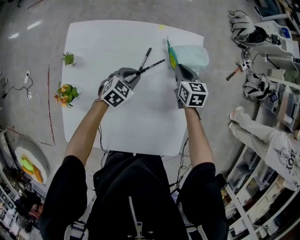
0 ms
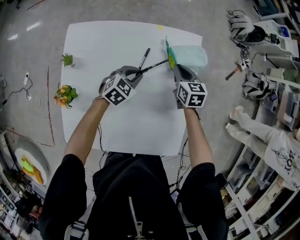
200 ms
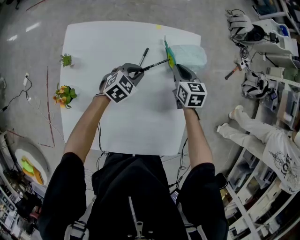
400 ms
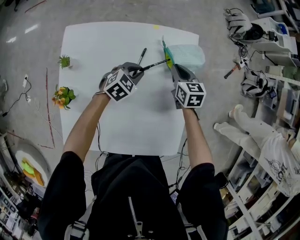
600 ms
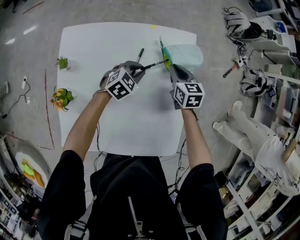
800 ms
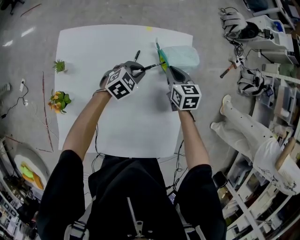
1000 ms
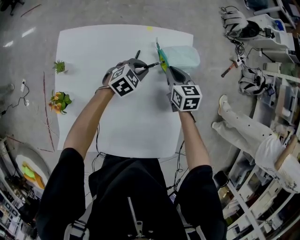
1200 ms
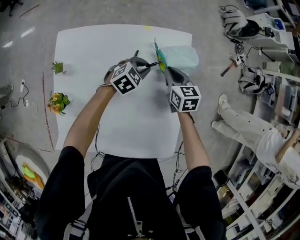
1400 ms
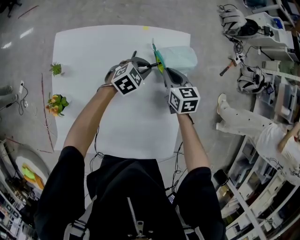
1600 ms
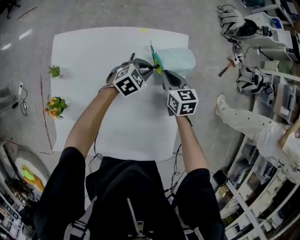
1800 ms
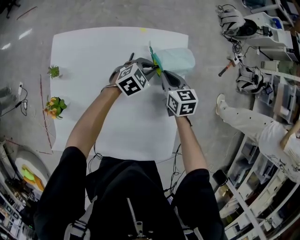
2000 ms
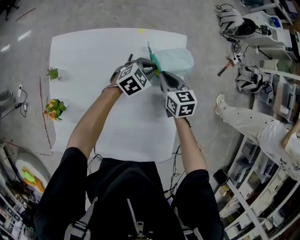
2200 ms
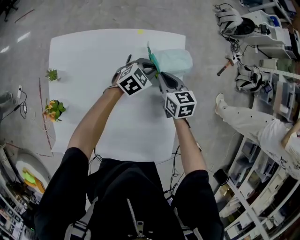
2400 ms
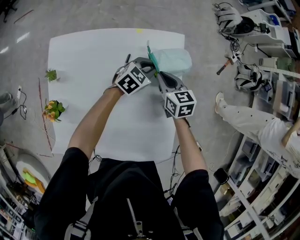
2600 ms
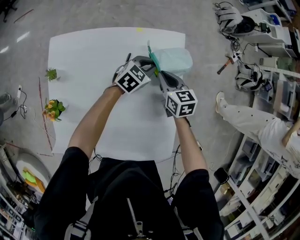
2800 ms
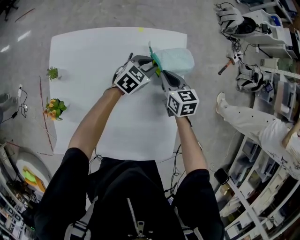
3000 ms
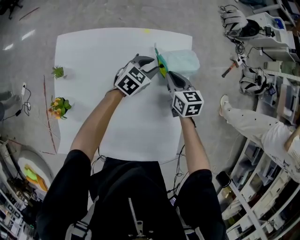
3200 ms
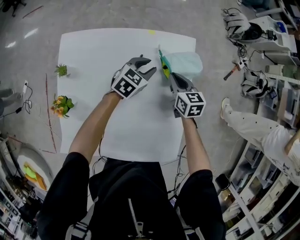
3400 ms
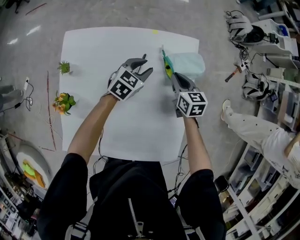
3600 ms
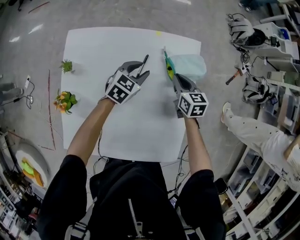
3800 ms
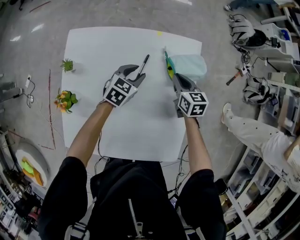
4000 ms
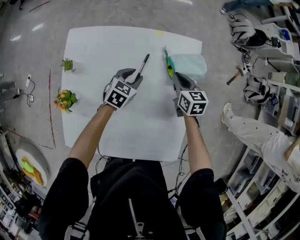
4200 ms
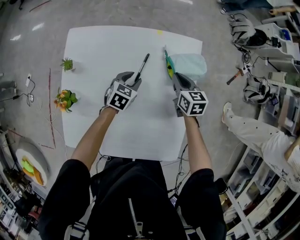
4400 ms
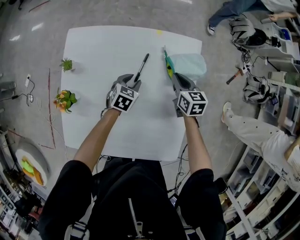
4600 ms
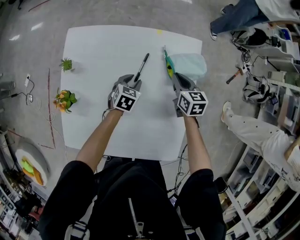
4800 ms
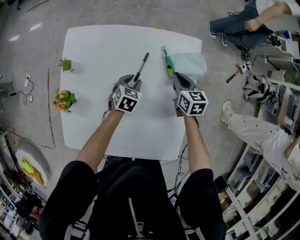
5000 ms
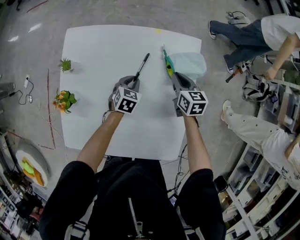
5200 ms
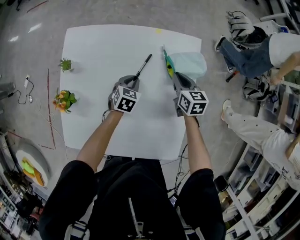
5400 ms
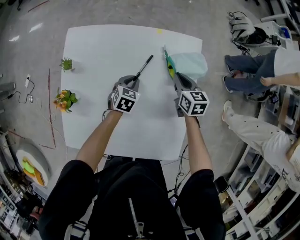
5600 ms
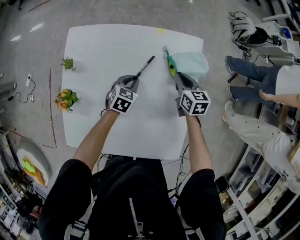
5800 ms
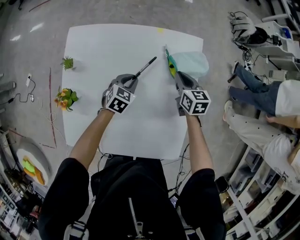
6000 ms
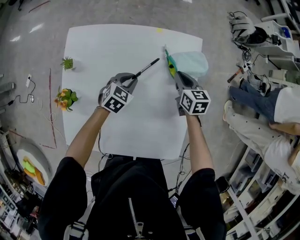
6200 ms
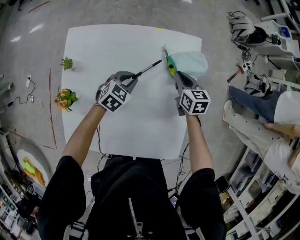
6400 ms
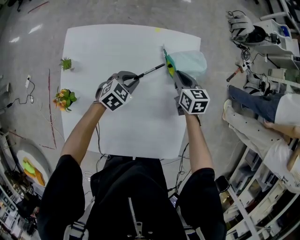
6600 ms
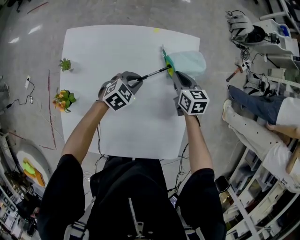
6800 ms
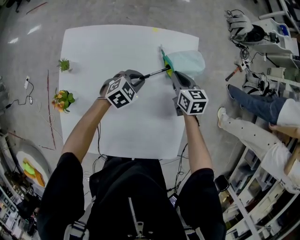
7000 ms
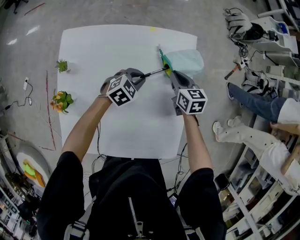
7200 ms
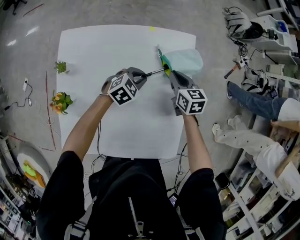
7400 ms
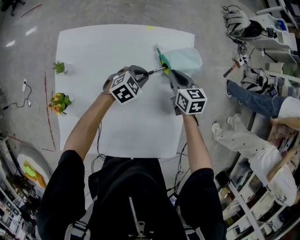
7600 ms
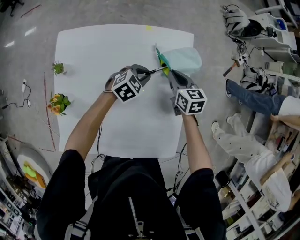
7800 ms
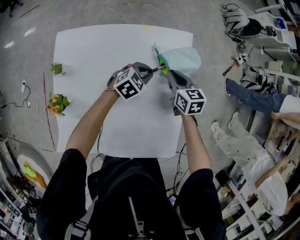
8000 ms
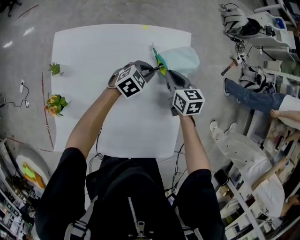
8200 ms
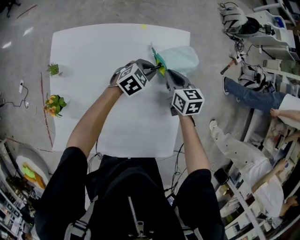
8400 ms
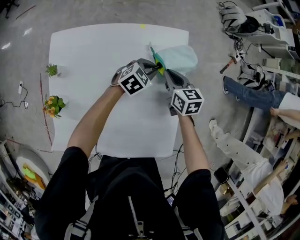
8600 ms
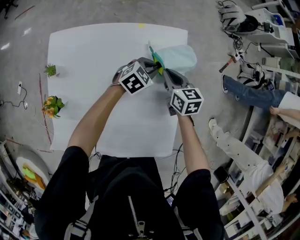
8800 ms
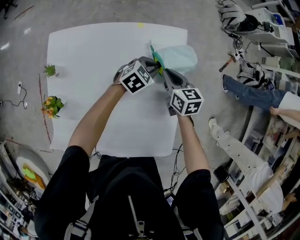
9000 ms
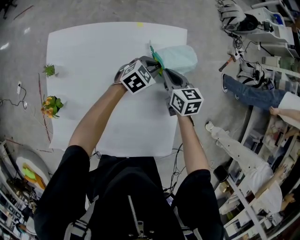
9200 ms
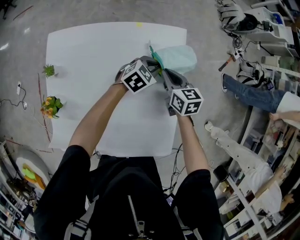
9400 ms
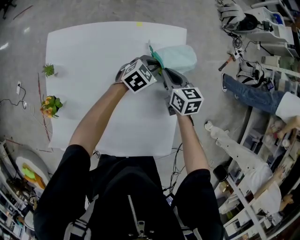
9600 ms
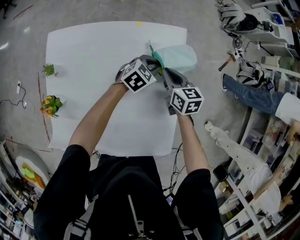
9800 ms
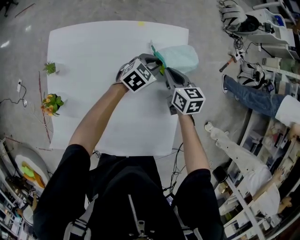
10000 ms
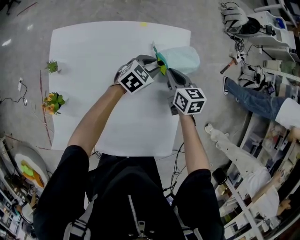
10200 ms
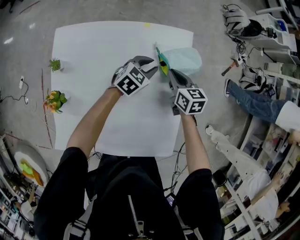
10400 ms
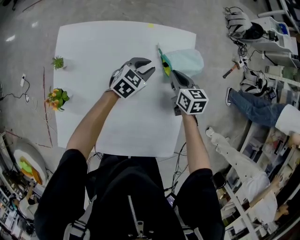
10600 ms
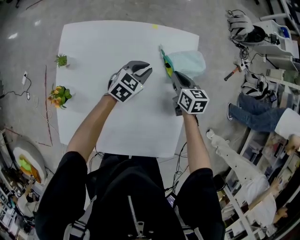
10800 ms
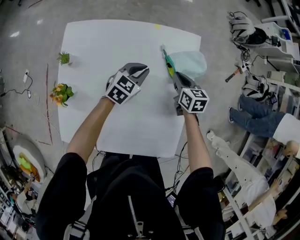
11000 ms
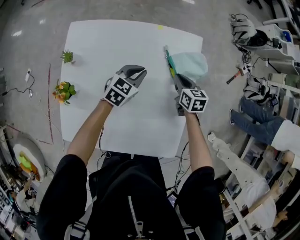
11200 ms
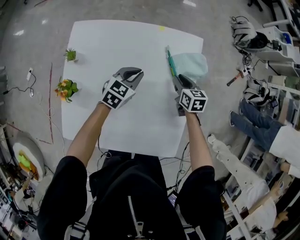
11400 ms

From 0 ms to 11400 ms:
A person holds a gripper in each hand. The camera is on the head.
From 0 ms to 1400 ms: The left gripper heads to the right and forward, covering roughly 10 cm.
From 1400 ms to 2800 ms: The left gripper ends up about 5 cm from where it was.
From 2800 ms to 4200 ms: The left gripper moves to the left and backward, approximately 15 cm, and rotates about 20 degrees.
From 4200 ms to 5600 ms: The left gripper ends up approximately 5 cm from where it was.
From 5600 ms to 7200 ms: The left gripper goes roughly 5 cm to the right, and swivels about 30 degrees.
From 7200 ms to 8600 ms: The left gripper goes some 10 cm to the right and forward.
From 8600 ms to 10000 ms: The grippers make only small movements.
From 10000 ms to 11400 ms: The left gripper travels to the left and backward by approximately 15 cm.

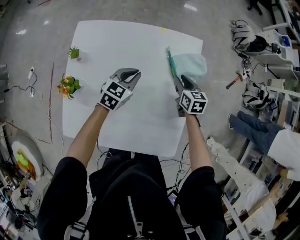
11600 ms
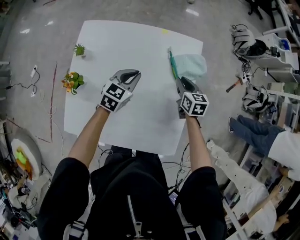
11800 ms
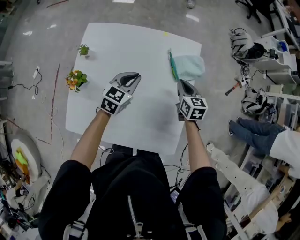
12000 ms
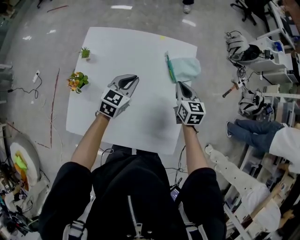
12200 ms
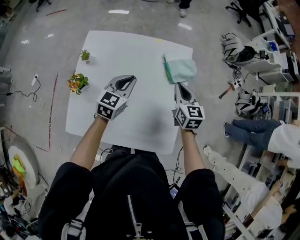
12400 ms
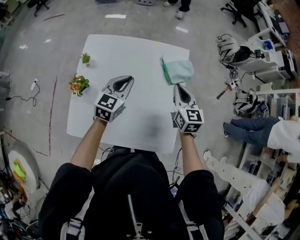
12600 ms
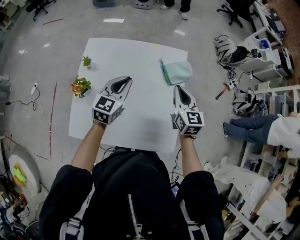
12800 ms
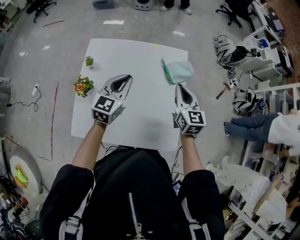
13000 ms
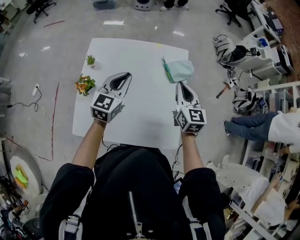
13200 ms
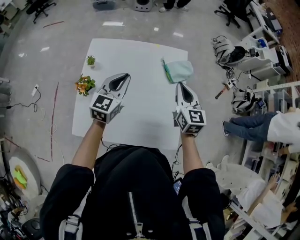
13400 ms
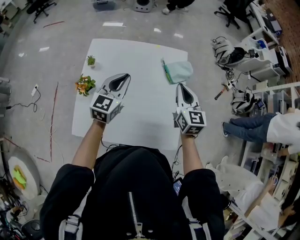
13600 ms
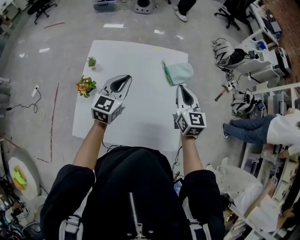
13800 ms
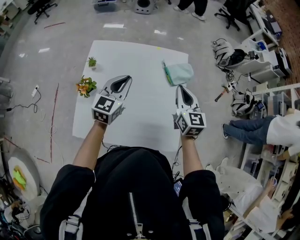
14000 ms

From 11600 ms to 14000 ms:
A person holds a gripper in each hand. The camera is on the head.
From 11600 ms to 12800 ms: The grippers both shift upward and backward by about 20 cm. The right gripper changes its angle by approximately 20 degrees, and closes up. The left gripper rotates approximately 20 degrees.
From 12800 ms to 14000 ms: The grippers make only small movements.

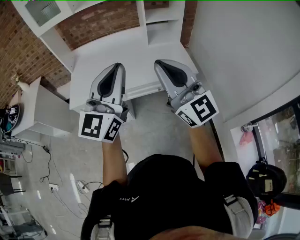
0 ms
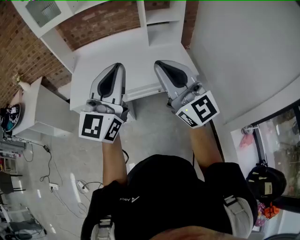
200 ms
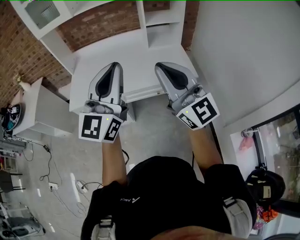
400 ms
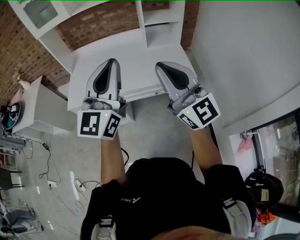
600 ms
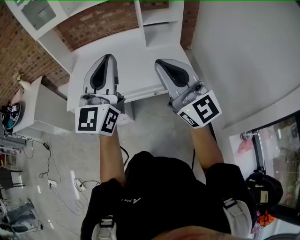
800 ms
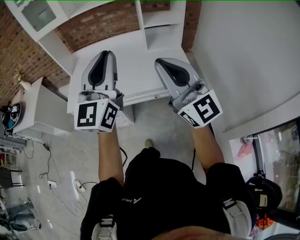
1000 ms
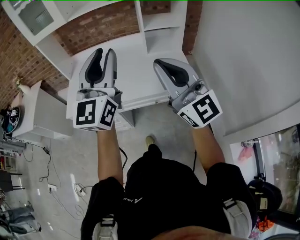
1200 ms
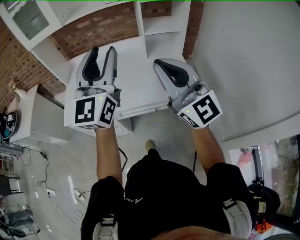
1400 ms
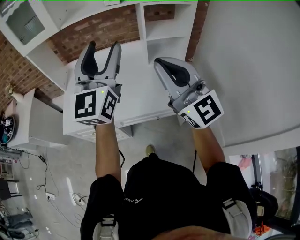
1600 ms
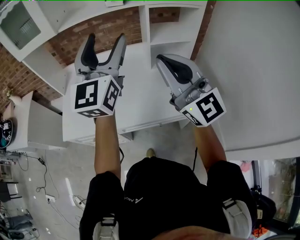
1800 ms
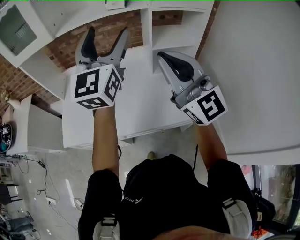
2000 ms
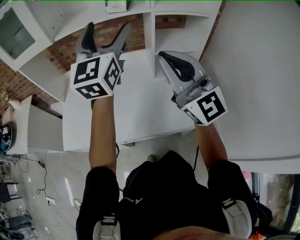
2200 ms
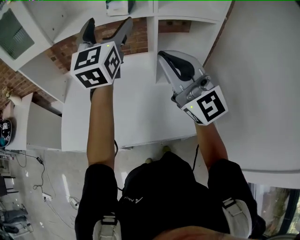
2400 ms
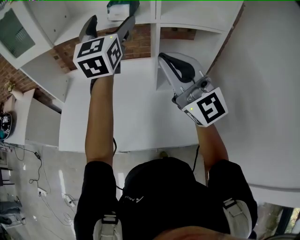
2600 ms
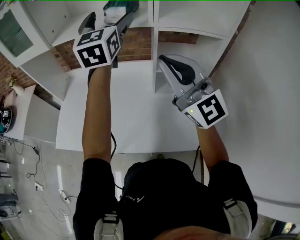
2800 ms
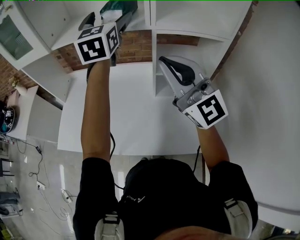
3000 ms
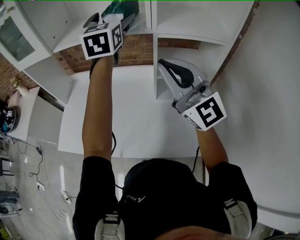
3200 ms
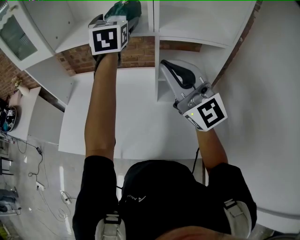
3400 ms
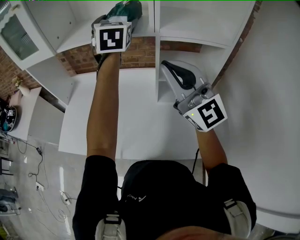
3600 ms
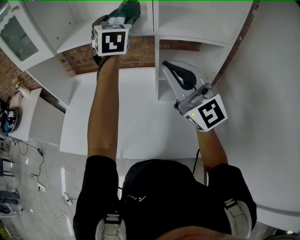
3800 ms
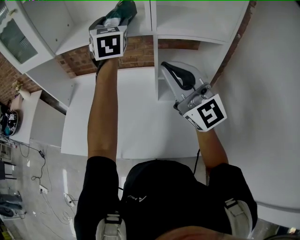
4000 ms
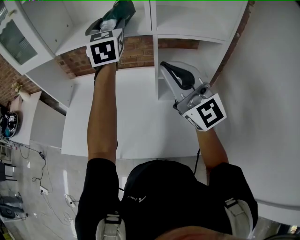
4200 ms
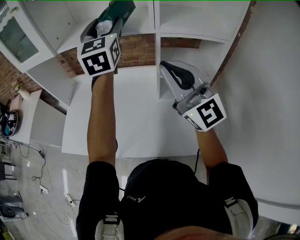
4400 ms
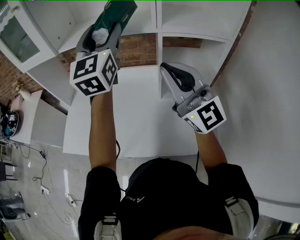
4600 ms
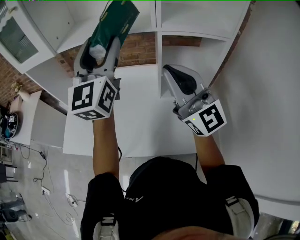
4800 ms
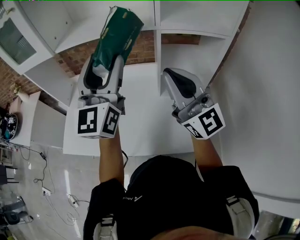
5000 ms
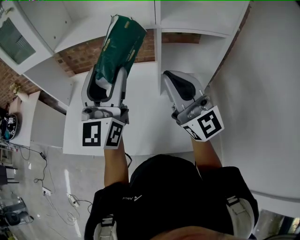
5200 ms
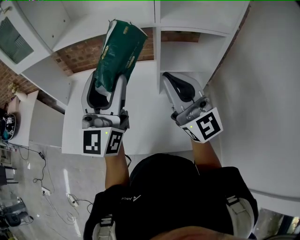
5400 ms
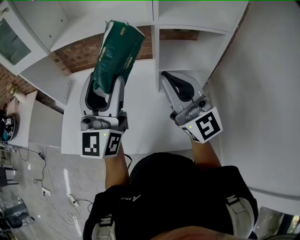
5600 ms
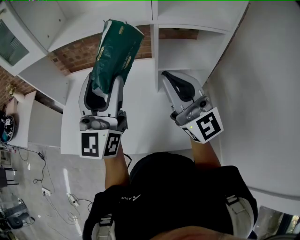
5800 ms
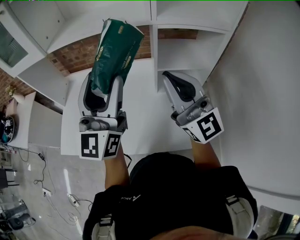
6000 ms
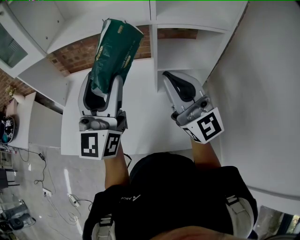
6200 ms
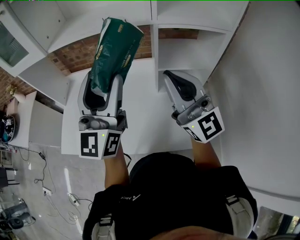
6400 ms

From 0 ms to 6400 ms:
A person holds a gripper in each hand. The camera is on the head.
From 0 ms to 1600 ms: The two grippers go approximately 25 cm forward. The left gripper opens.
From 1600 ms to 3200 ms: The right gripper heads forward and to the right, covering roughly 30 cm. Meanwhile the left gripper shifts some 40 cm forward, rotates approximately 30 degrees, and opens its fingers.
From 3200 ms to 4800 ms: The left gripper moves backward and to the left, about 15 cm, turns by about 20 degrees, and closes.
From 4800 ms to 6400 ms: The left gripper heads backward and downward, covering about 10 cm.

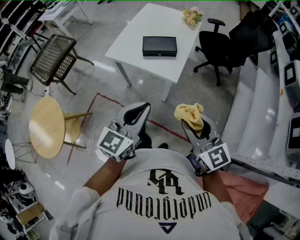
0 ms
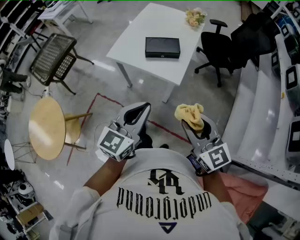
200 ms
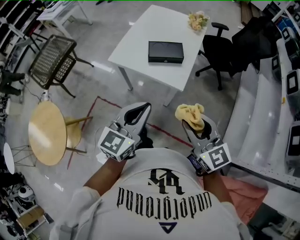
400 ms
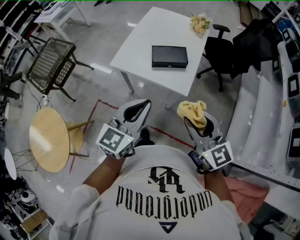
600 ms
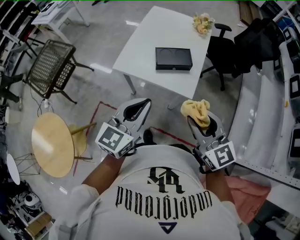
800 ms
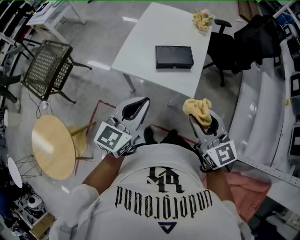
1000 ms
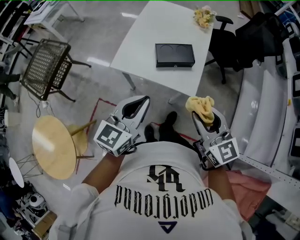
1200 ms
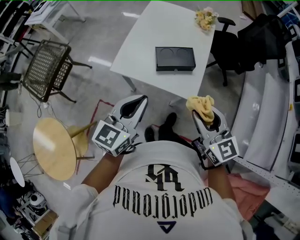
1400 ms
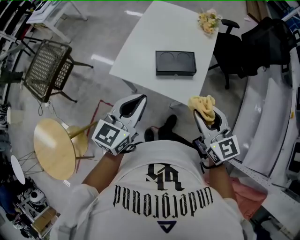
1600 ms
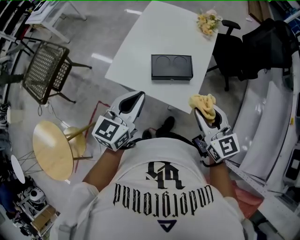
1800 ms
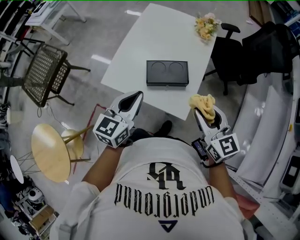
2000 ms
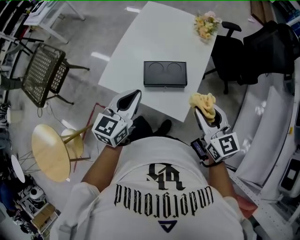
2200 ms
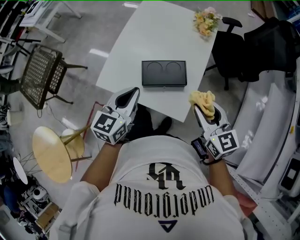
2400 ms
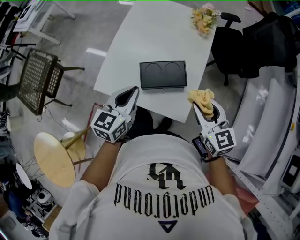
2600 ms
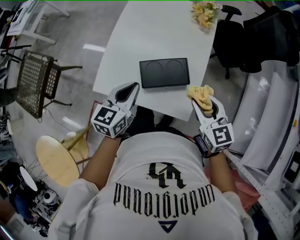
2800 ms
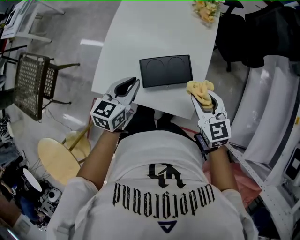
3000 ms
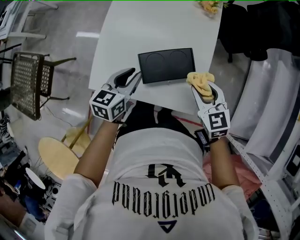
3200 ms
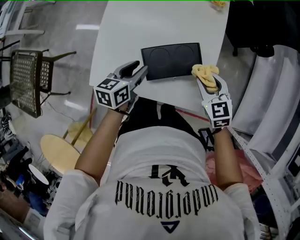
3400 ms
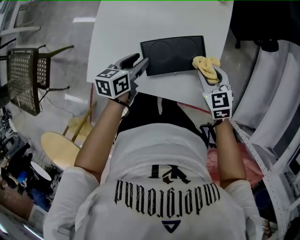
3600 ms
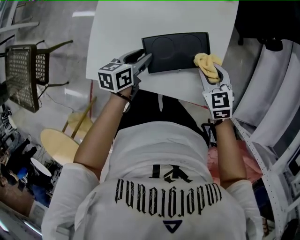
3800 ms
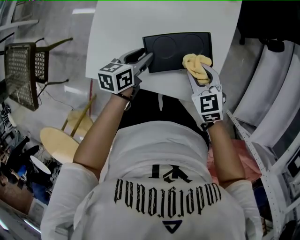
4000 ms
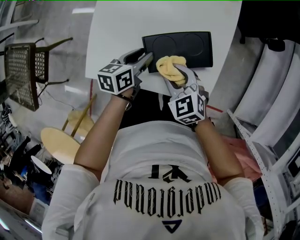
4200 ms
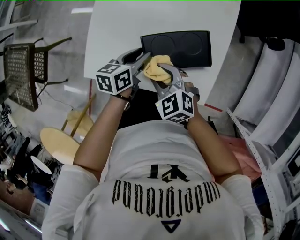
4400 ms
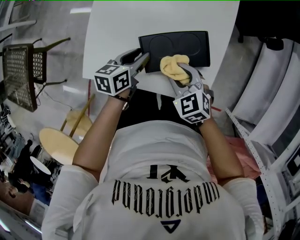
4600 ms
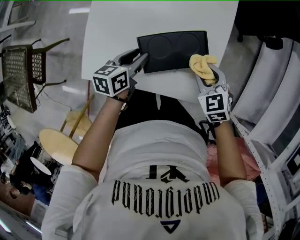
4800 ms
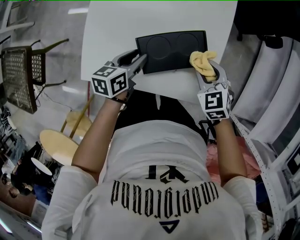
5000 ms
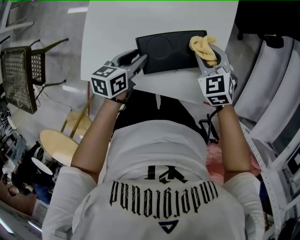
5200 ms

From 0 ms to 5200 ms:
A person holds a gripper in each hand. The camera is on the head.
From 0 ms to 1800 ms: The grippers both shift forward by some 35 cm.
From 1800 ms to 3400 ms: Both grippers travel together downward and forward, about 35 cm. The right gripper turns by about 30 degrees. Meanwhile the left gripper turns by approximately 30 degrees, and opens.
From 3400 ms to 5200 ms: The right gripper heads downward and forward, covering about 10 cm, and goes to the left and returns, roughly 20 cm each way. The left gripper shifts approximately 5 cm downward.
